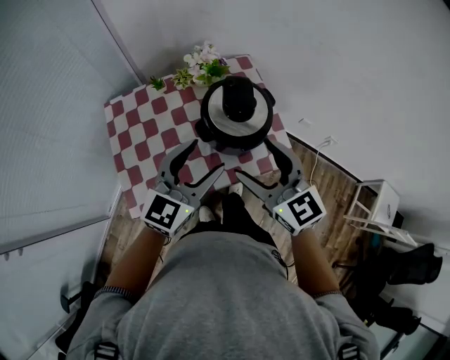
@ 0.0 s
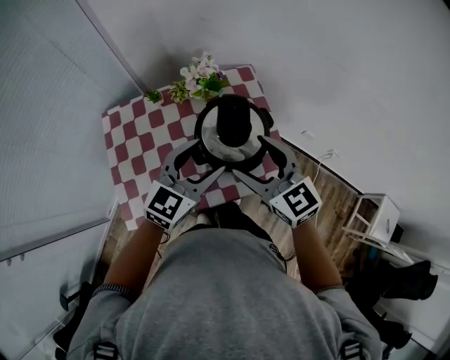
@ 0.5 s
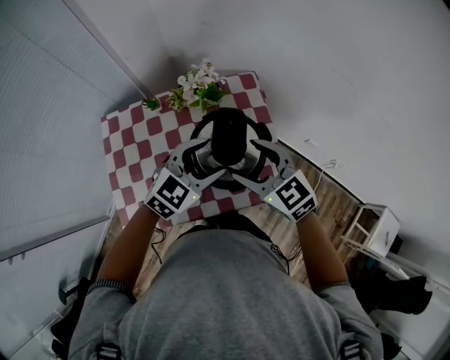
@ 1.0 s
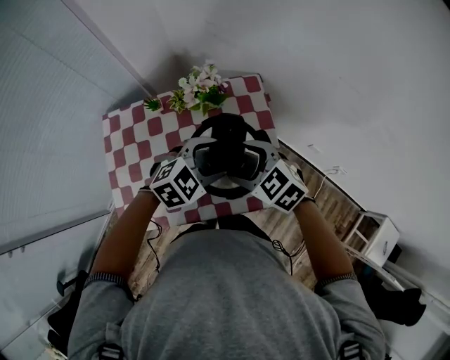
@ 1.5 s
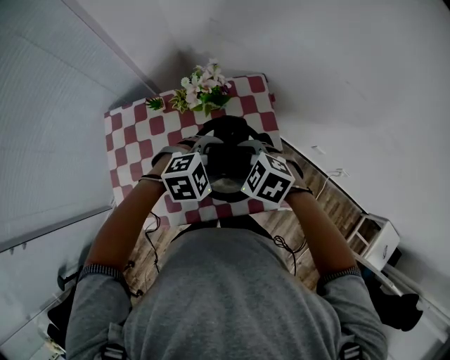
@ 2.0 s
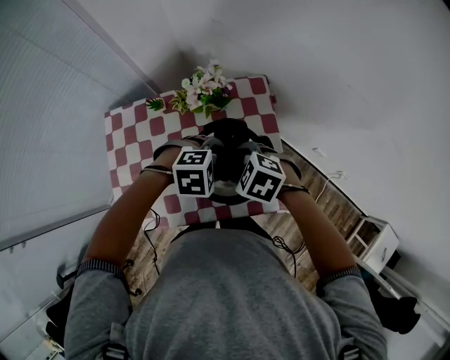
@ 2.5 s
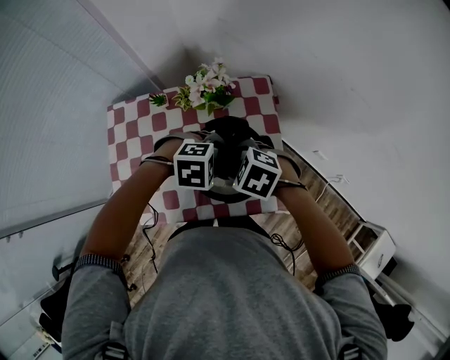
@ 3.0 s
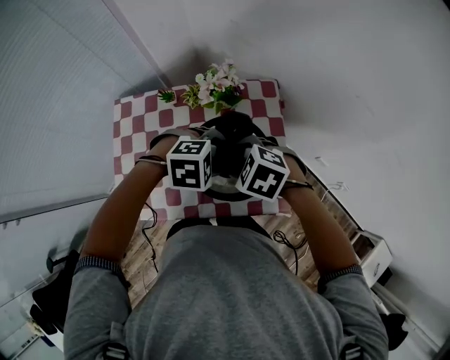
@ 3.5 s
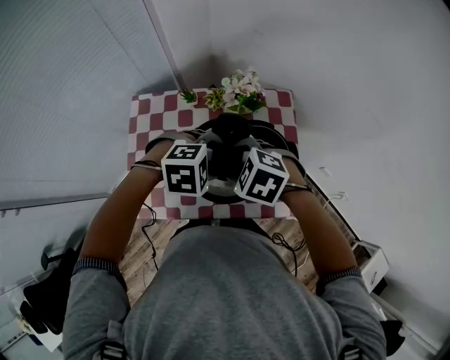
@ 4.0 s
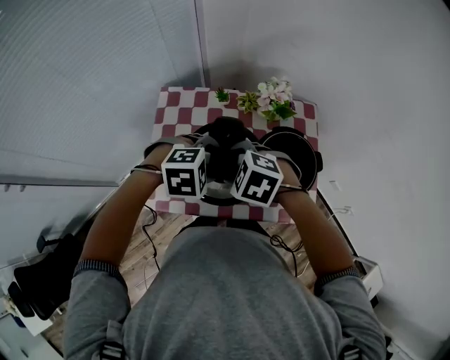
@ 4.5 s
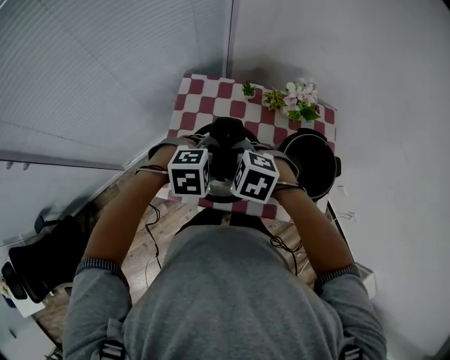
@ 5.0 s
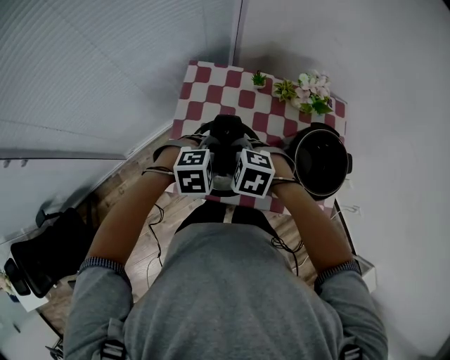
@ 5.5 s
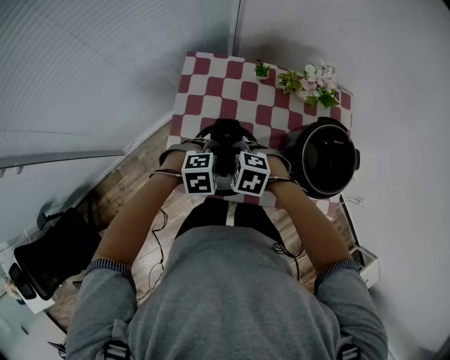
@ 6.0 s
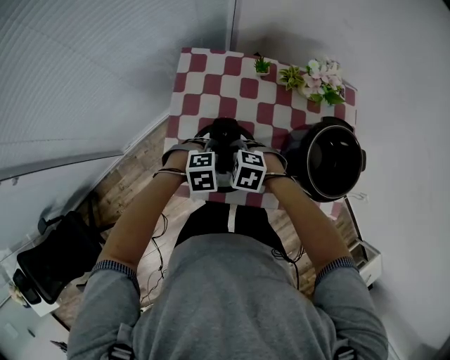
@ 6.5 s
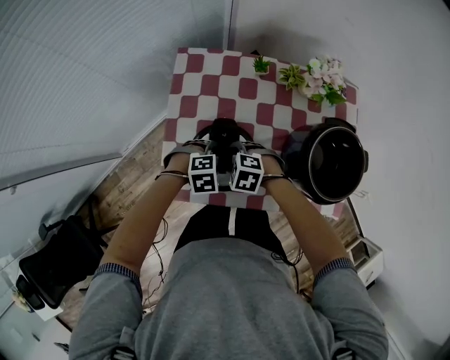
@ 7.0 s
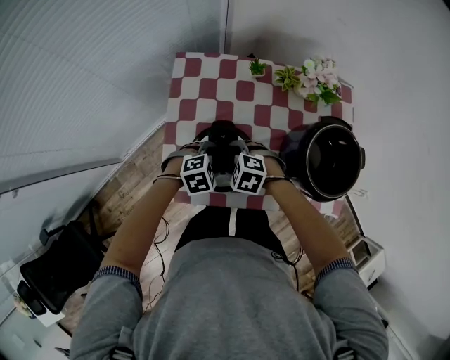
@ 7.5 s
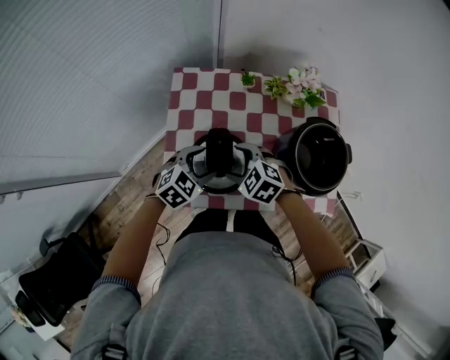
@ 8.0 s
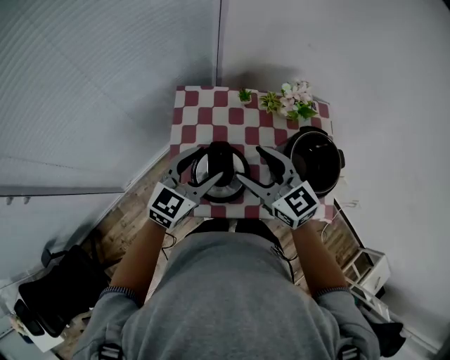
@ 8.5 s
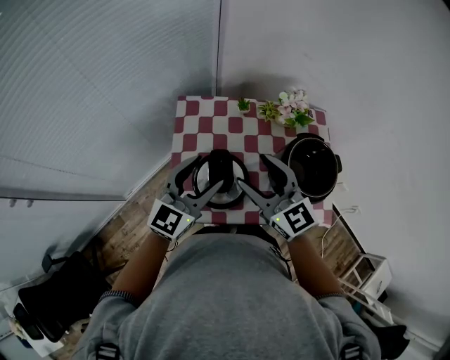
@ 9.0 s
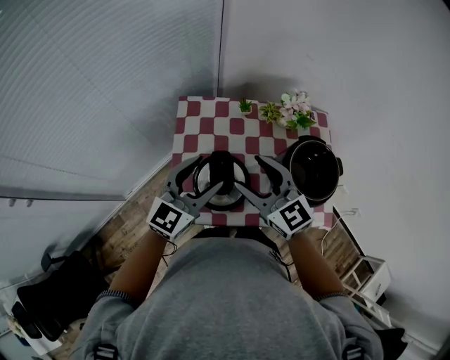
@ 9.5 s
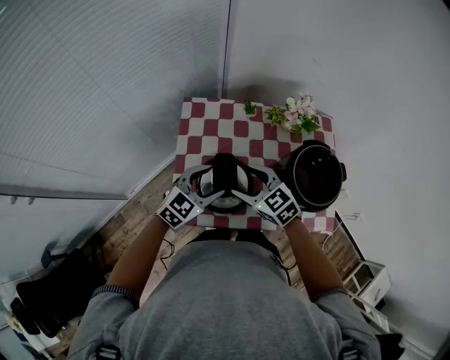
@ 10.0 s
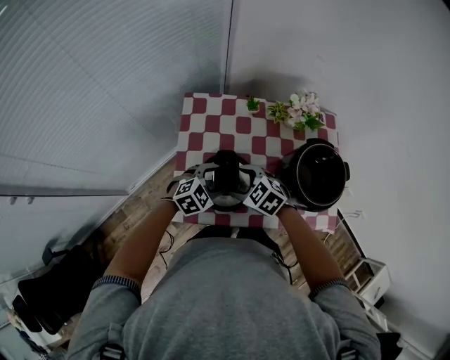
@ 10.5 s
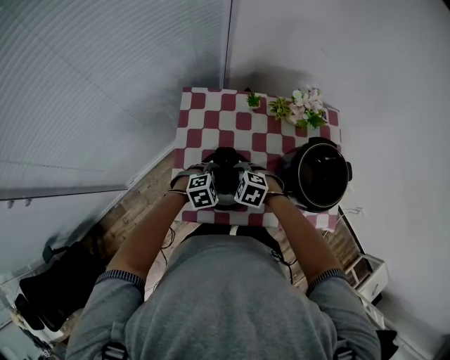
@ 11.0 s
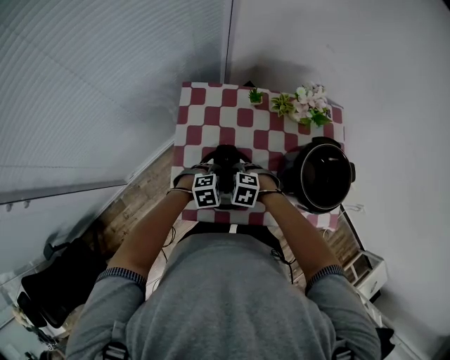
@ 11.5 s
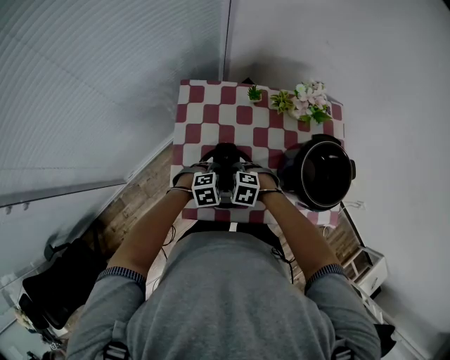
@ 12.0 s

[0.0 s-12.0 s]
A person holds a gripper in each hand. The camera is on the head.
0.0 to 2.0 s: The left gripper changes place by about 25 cm, and tilts its fingers some 50 degrees downward, while the right gripper shifts by roughly 20 cm, and tilts its fingers about 40 degrees downward.
2.0 to 4.0 s: The right gripper ends up roughly 10 cm from where it was. The left gripper changes place by roughly 10 cm.
4.0 to 6.0 s: The right gripper moves some 30 cm. Meanwhile the left gripper moves about 30 cm.
6.0 to 8.0 s: The right gripper goes downward and returns, some 10 cm each way, and swivels roughly 20 degrees. Meanwhile the left gripper moves about 10 cm downward and comes back, and changes its angle by roughly 30 degrees.
8.0 to 10.0 s: The grippers both shift upward by roughly 10 cm. The right gripper changes its angle by about 30 degrees.
10.0 to 12.0 s: The grippers both shift downward by roughly 20 cm. The left gripper points its fingers some 40 degrees further downward, while the right gripper tips its fingers downward by roughly 40 degrees.

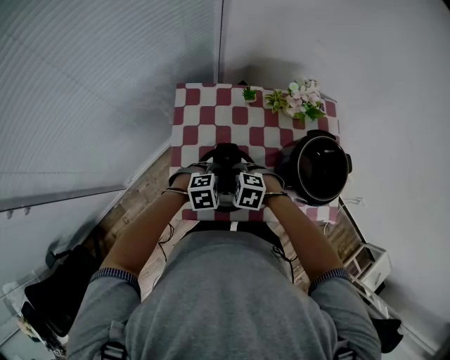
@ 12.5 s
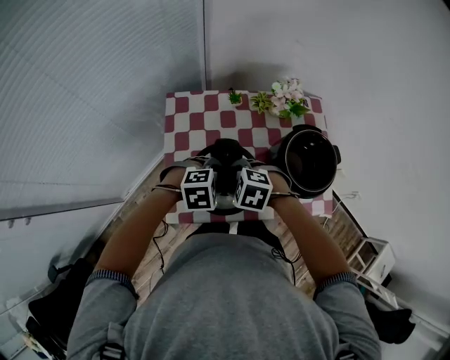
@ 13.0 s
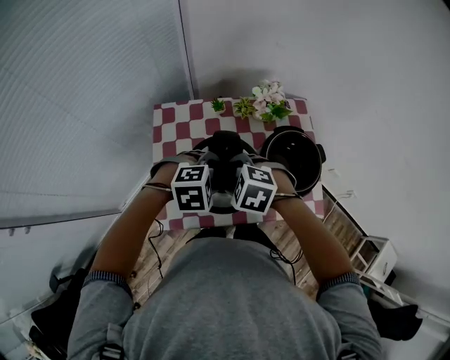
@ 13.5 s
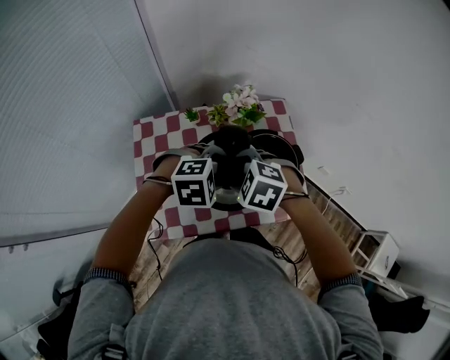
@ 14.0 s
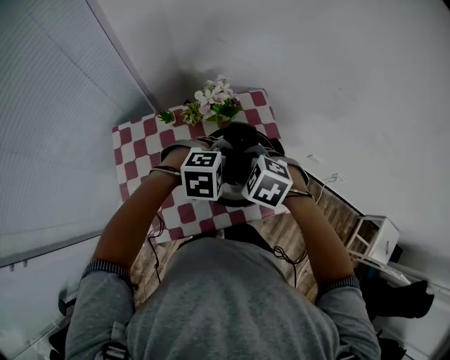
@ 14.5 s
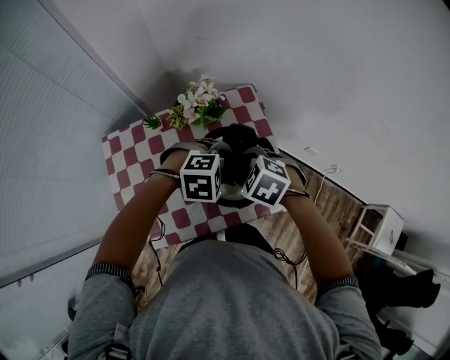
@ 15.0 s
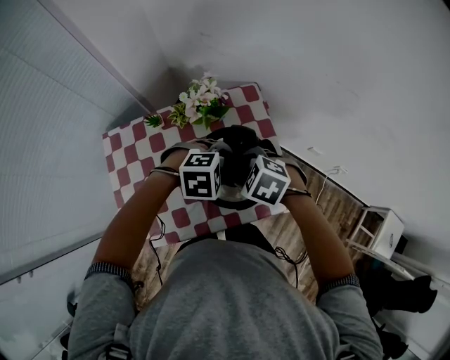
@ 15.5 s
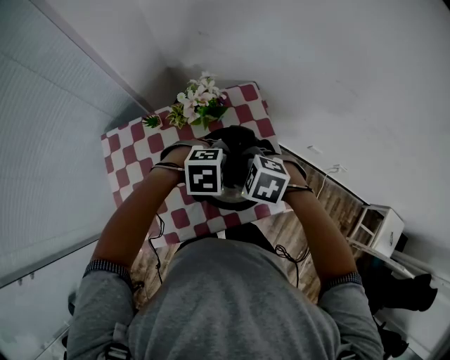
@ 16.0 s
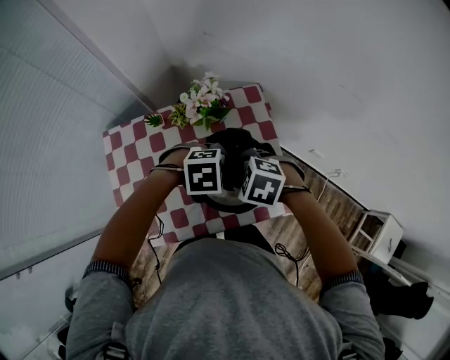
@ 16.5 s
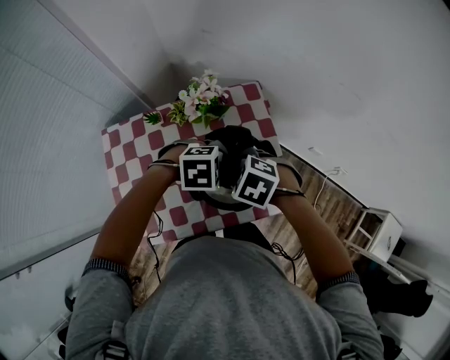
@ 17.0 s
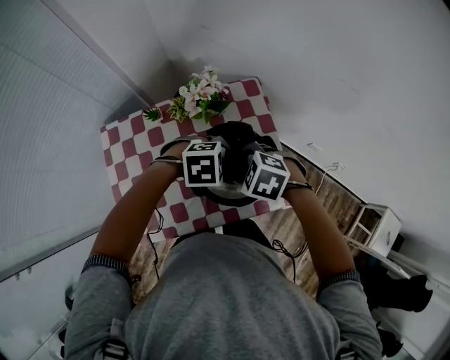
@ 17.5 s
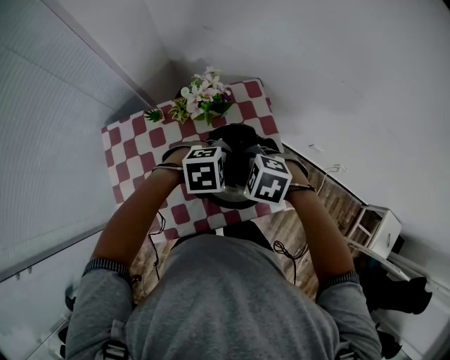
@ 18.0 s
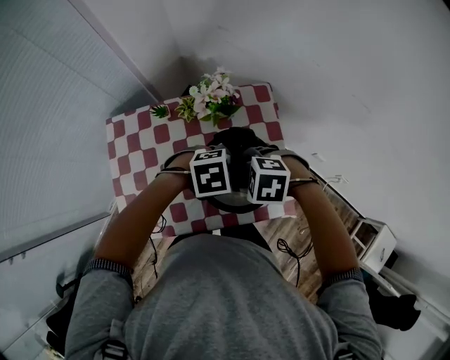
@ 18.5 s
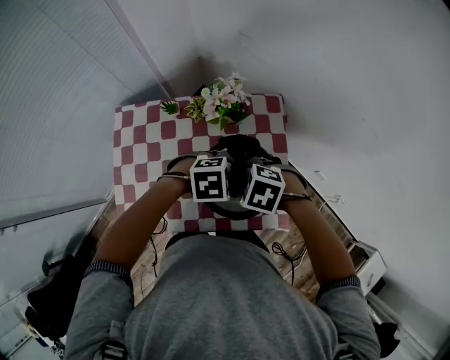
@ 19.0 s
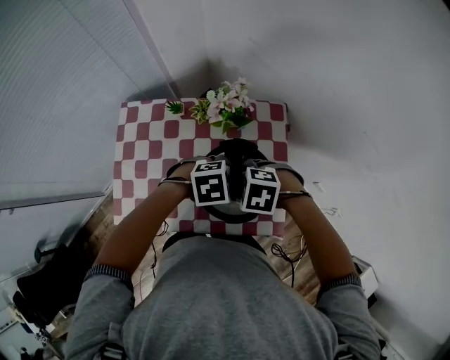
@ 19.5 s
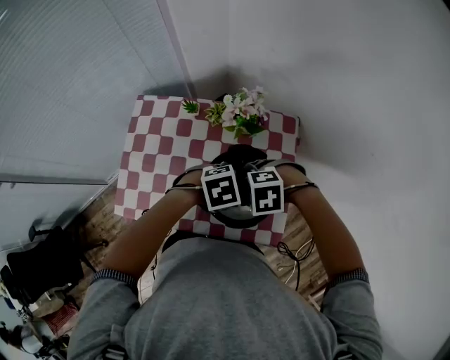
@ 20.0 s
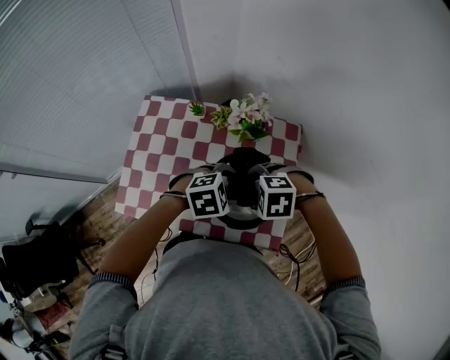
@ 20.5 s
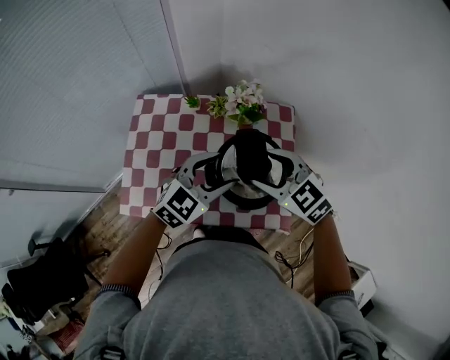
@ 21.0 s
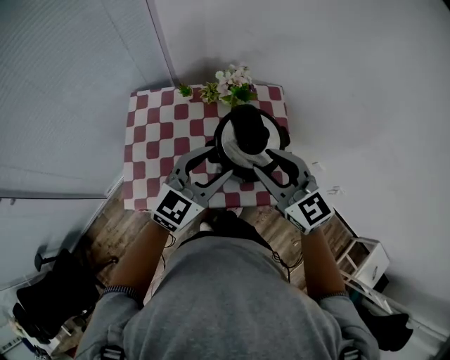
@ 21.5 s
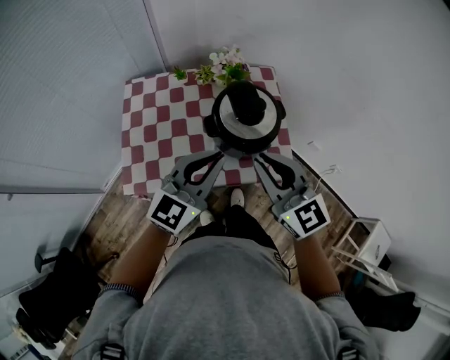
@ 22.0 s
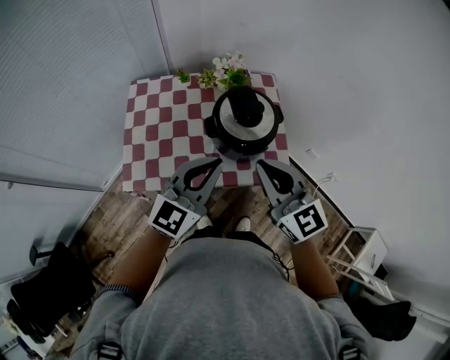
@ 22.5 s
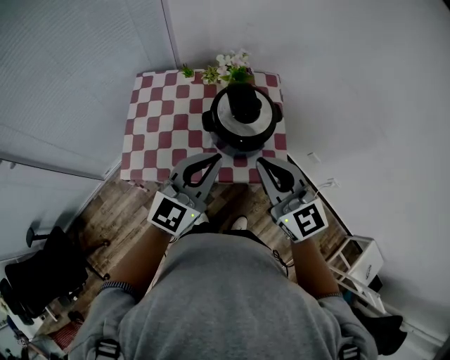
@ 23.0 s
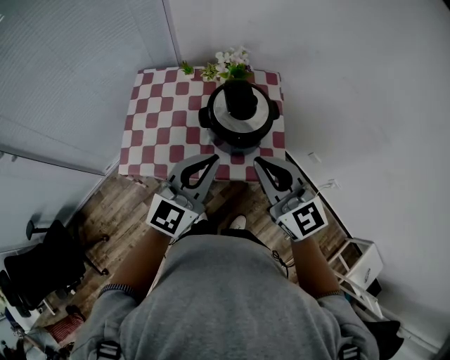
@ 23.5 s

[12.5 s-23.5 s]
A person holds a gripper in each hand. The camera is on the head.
12.5 to 14.5 s: The left gripper shifts by about 35 cm, and rotates approximately 30 degrees. Meanwhile the right gripper moves approximately 35 cm, and rotates roughly 30 degrees.
14.5 to 16.0 s: The right gripper moves about 5 cm, while the left gripper moves some 5 cm.
16.0 to 18.0 s: The grippers move only a little.
18.0 to 20.0 s: The right gripper rolls counterclockwise, seen from behind, by some 40 degrees, while the left gripper swivels approximately 40 degrees.
20.0 to 21.5 s: Both grippers travel together upward, roughly 15 cm. The left gripper tips its fingers upward by some 50 degrees. The right gripper tilts its fingers about 60 degrees upward.
21.5 to 23.5 s: The two grippers go roughly 15 cm backward. The left gripper closes its fingers. The right gripper closes its fingers.

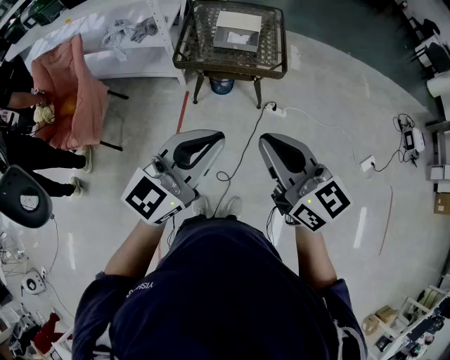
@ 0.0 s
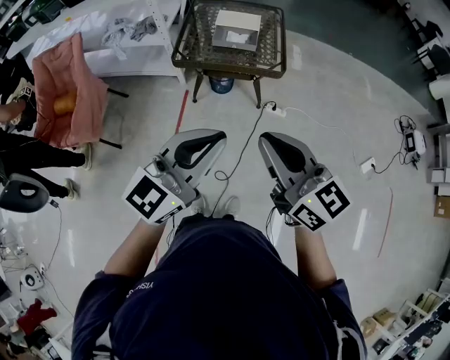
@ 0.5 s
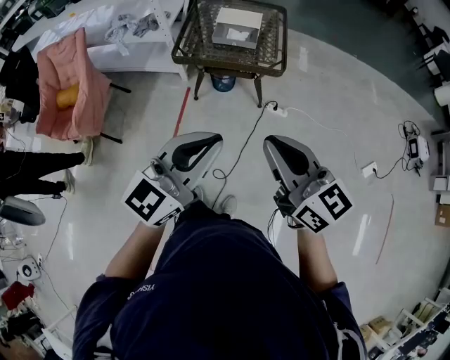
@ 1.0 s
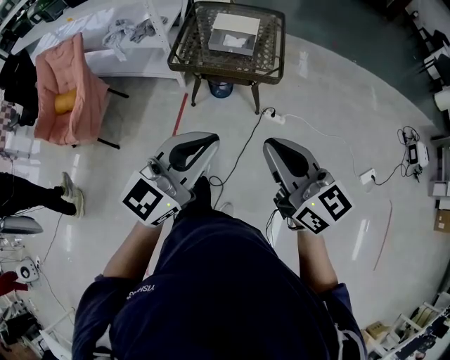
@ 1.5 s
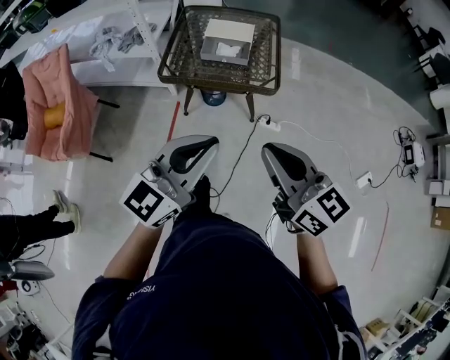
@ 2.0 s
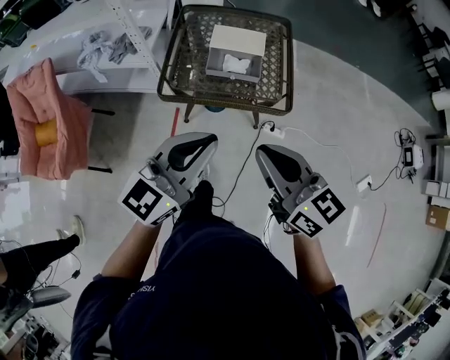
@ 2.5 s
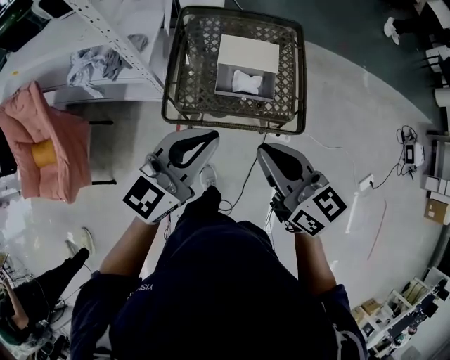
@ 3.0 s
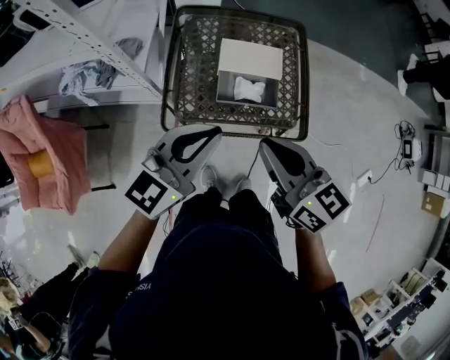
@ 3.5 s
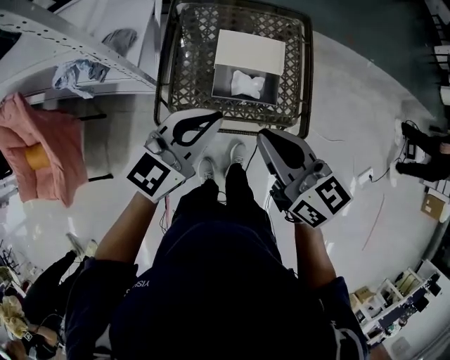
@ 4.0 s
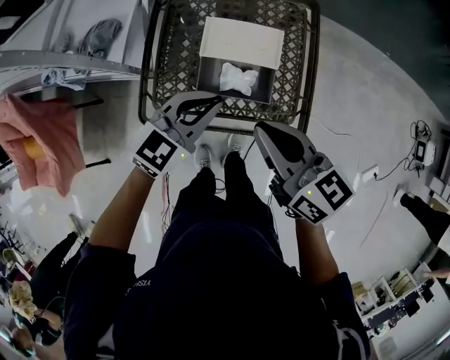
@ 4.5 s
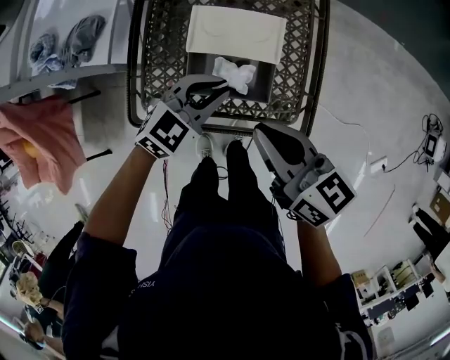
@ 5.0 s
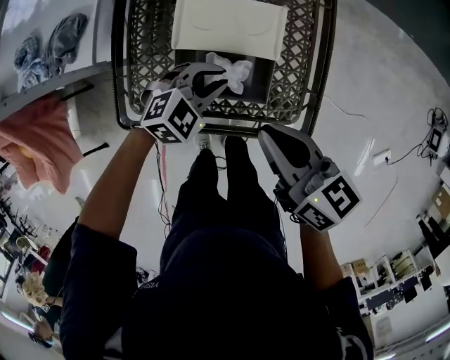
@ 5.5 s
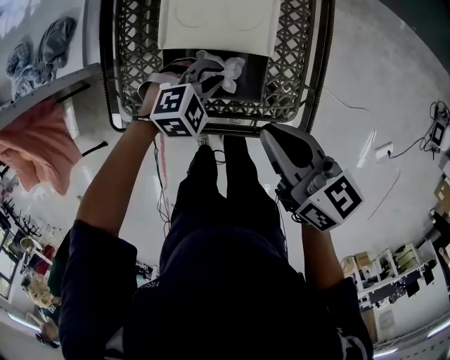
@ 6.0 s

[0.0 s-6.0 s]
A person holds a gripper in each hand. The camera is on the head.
0.0 to 2.0 s: The left gripper moves forward and to the right, about 10 cm. Meanwhile the right gripper heads forward, to the right and downward, covering about 15 cm.
2.0 to 4.0 s: Both grippers are carried forward, approximately 40 cm.
4.0 to 6.0 s: The left gripper goes approximately 35 cm downward, and angles its fingers downward, by some 50 degrees. Meanwhile the right gripper is displaced downward, to the right and forward by roughly 25 cm, and rotates about 20 degrees.
